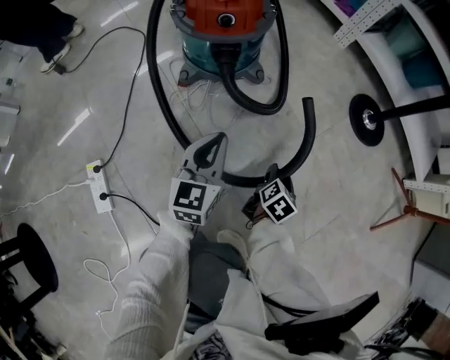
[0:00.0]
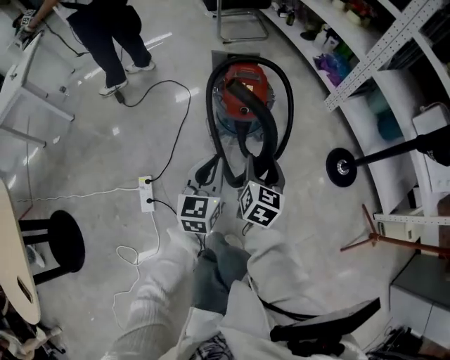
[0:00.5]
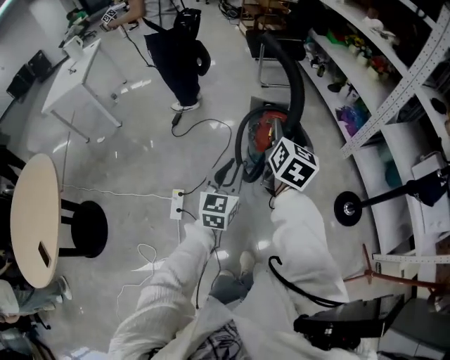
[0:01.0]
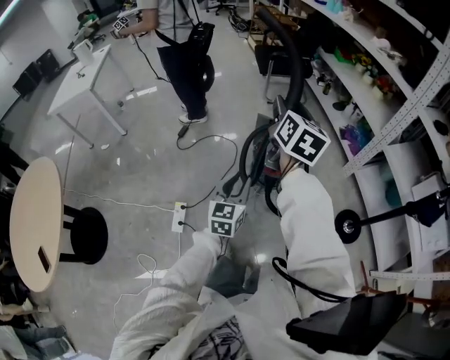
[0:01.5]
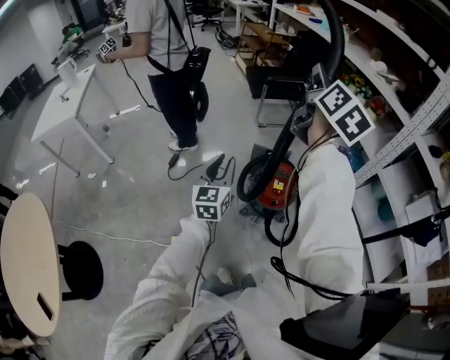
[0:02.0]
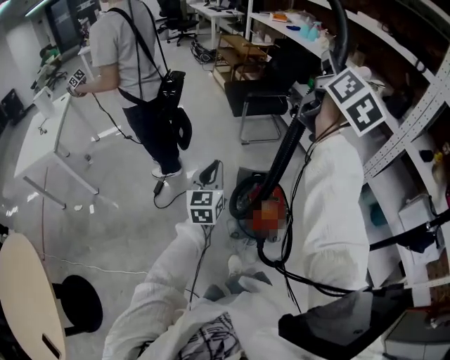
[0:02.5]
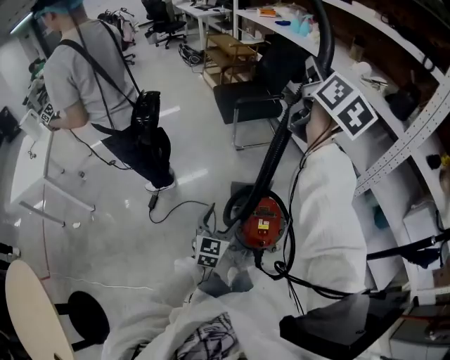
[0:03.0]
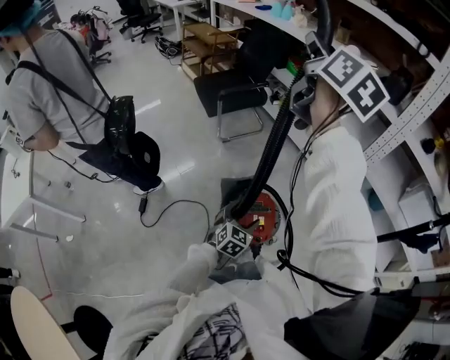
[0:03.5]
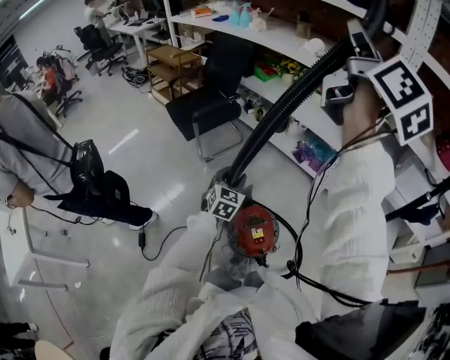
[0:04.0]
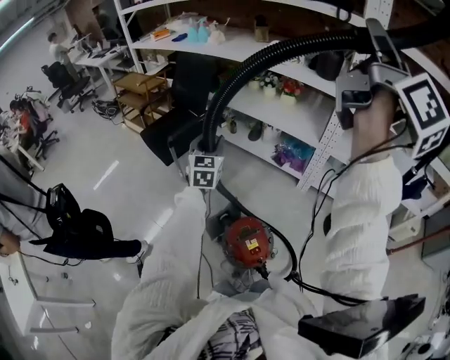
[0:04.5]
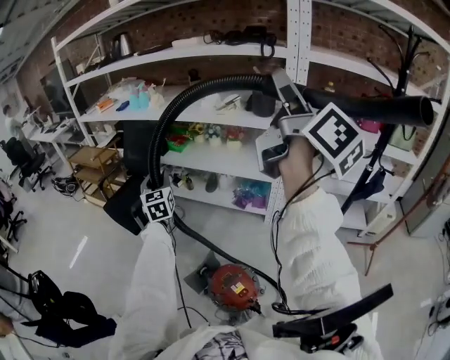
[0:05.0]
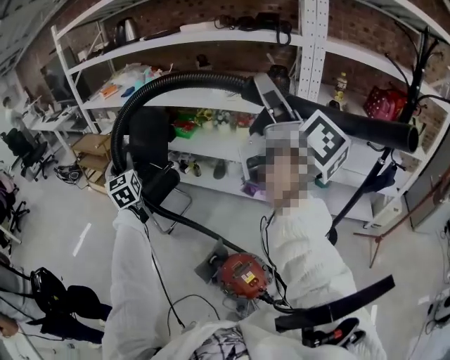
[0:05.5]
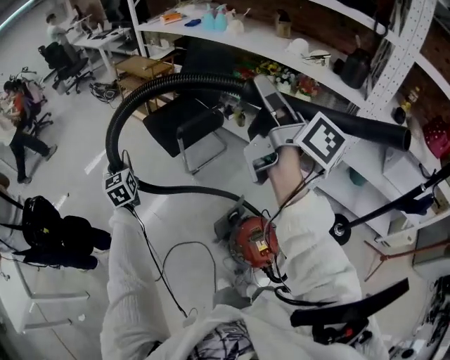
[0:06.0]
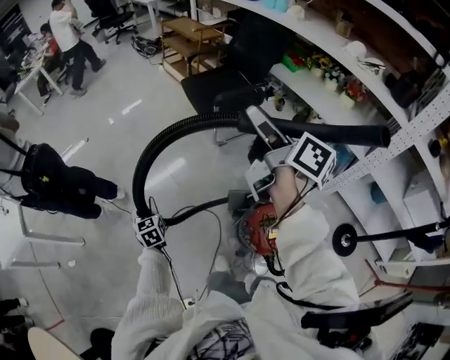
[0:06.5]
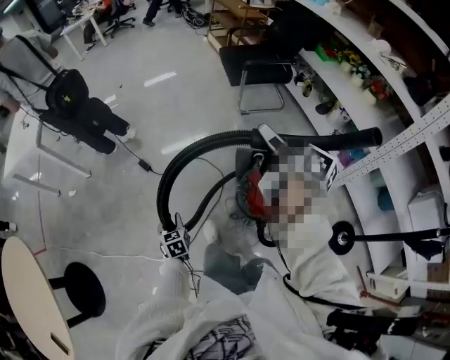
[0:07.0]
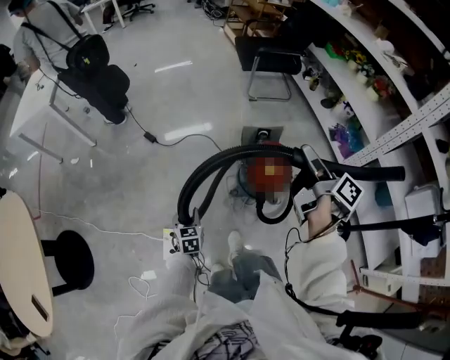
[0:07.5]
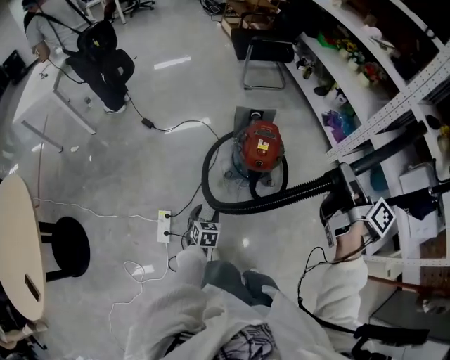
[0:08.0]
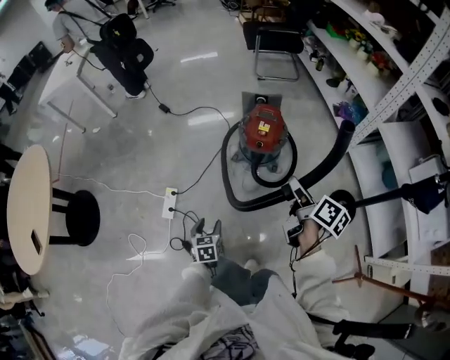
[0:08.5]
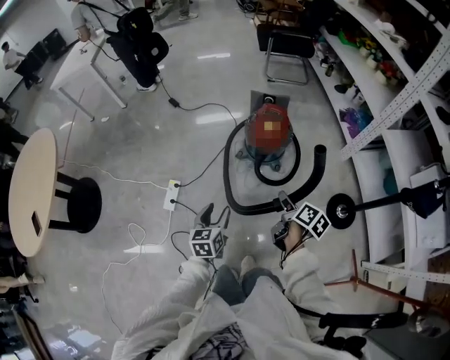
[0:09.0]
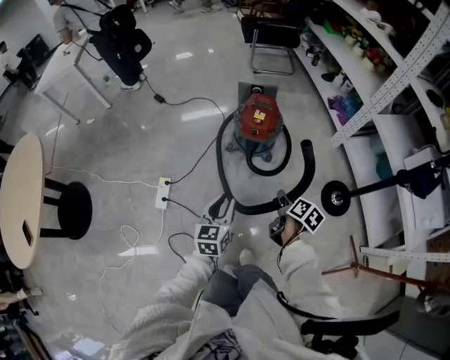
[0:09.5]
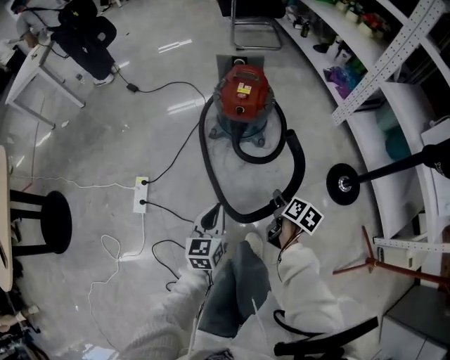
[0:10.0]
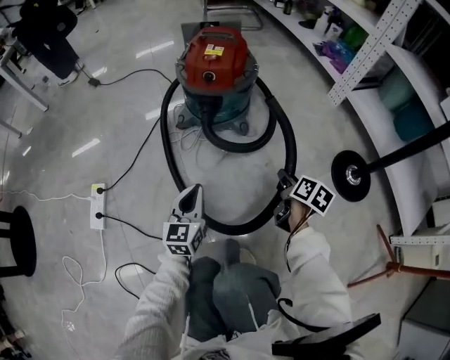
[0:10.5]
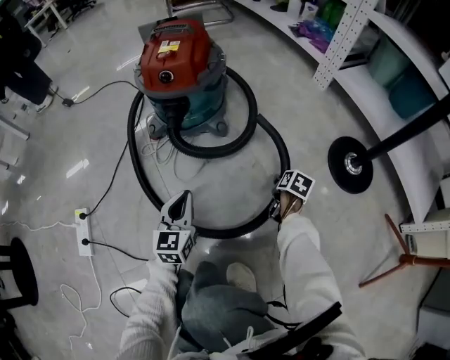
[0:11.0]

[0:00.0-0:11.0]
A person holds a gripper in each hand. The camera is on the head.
0:00.0 to 0:02.0: The left gripper shifts roughly 70 cm upward, and swivels roughly 20 degrees. Meanwhile the right gripper heads upward, covering approximately 1 m, and points its fingers about 50 degrees further upward.
0:02.0 to 0:03.5: The right gripper is displaced forward by some 30 cm, while the left gripper is displaced forward, downward and to the right by approximately 35 cm, turns by some 50 degrees, and opens its fingers.
0:03.5 to 0:05.5: The left gripper goes some 60 cm forward, upward and to the left, points its fingers approximately 30 degrees further upward, and closes up. Meanwhile the right gripper shifts approximately 15 cm to the right and upward, and turns by approximately 30 degrees.
0:05.5 to 0:07.5: The right gripper goes approximately 40 cm downward, and angles its fingers downward, by about 40 degrees, while the left gripper shifts by roughly 1 m, and tips its fingers downward by roughly 40 degrees.
0:07.5 to 0:09.0: The right gripper travels backward and downward by some 40 cm, and changes its angle by some 30 degrees. Meanwhile the left gripper heads backward and to the right, covering about 40 cm.
0:09.0 to 0:11.0: Both grippers travel together downward, approximately 60 cm. The left gripper swivels roughly 30 degrees, and closes; the right gripper turns by about 40 degrees.

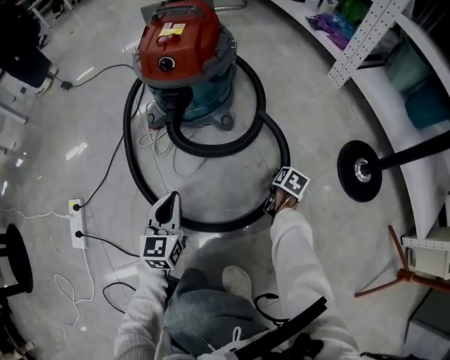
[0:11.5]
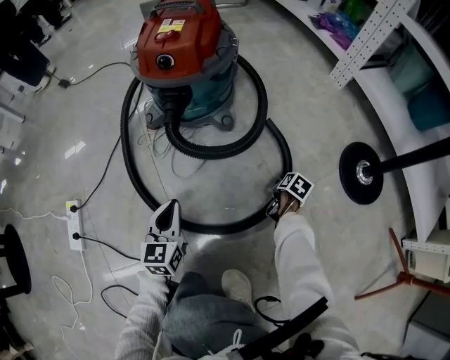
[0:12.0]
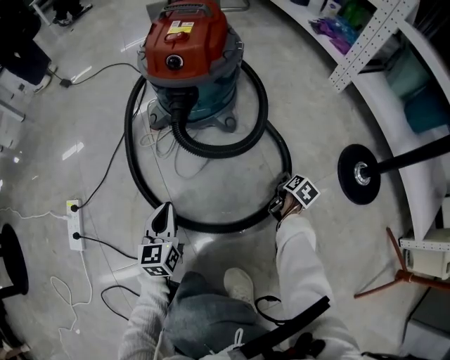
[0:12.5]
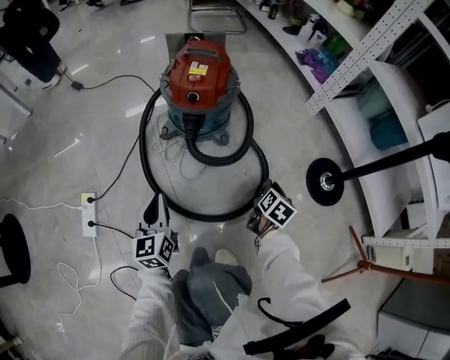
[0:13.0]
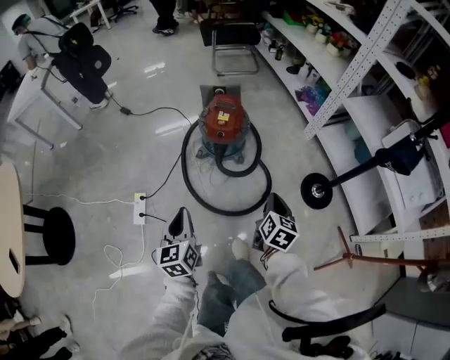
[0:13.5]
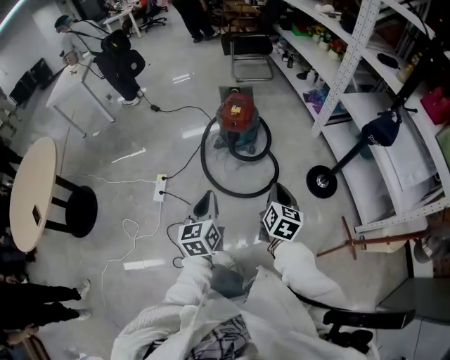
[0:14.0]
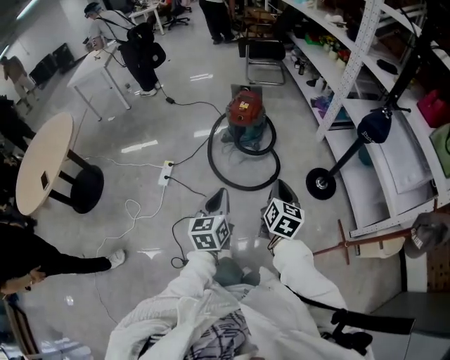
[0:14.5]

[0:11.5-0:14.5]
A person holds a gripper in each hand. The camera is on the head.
0:11.5 to 0:13.0: Both grippers move upward, approximately 25 cm. The right gripper closes up.
0:13.0 to 0:14.5: Both grippers are carried backward, about 40 cm. The two grippers go approximately 60 cm upward. The right gripper changes its angle by some 30 degrees, and closes its fingers.

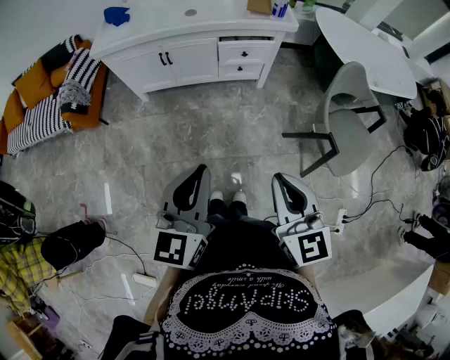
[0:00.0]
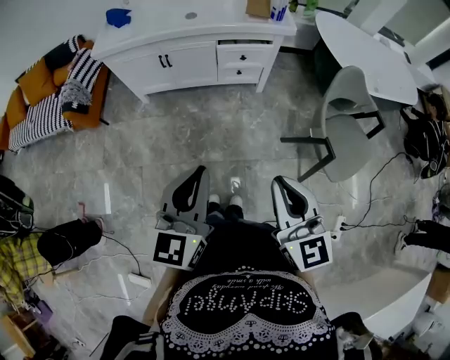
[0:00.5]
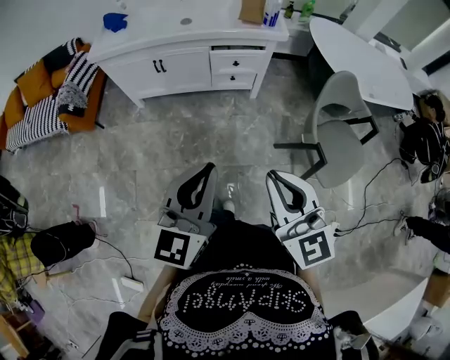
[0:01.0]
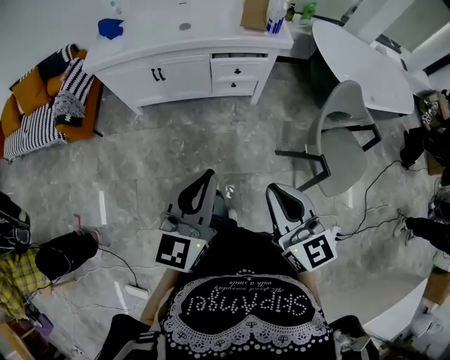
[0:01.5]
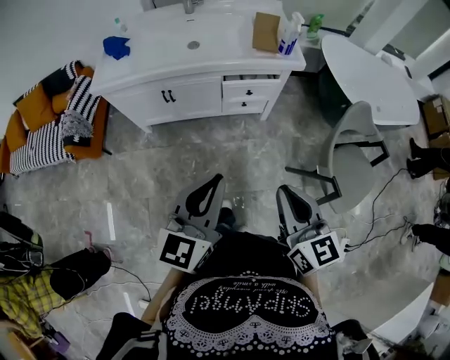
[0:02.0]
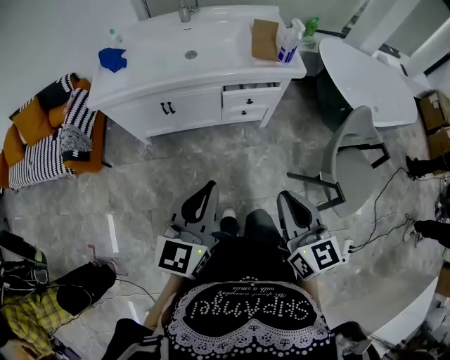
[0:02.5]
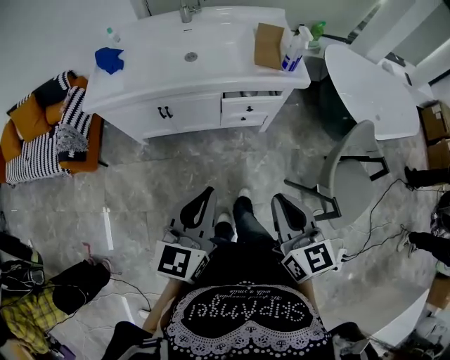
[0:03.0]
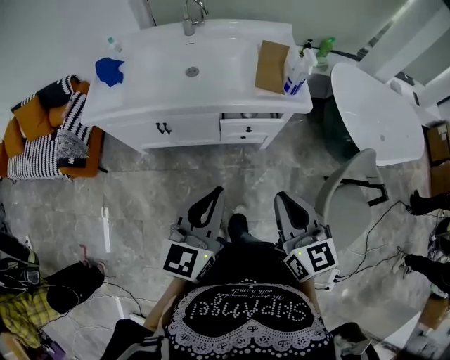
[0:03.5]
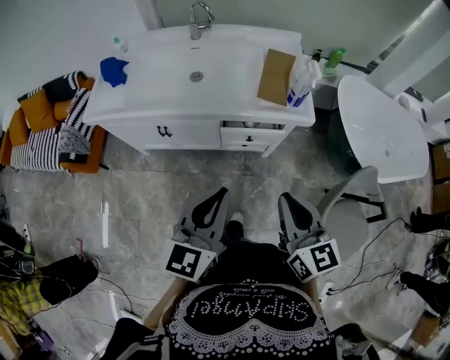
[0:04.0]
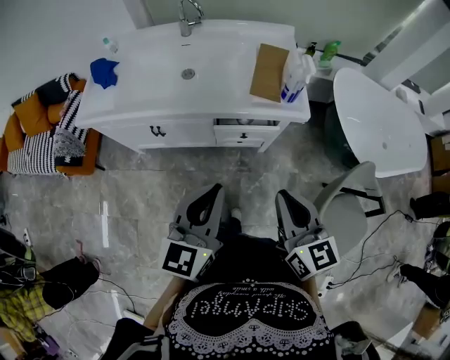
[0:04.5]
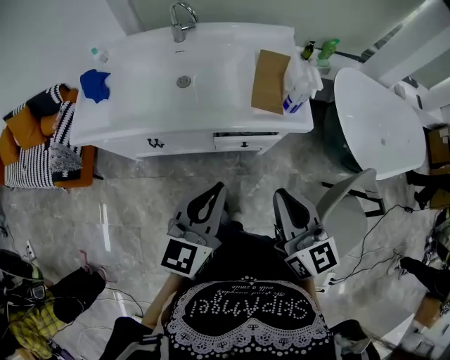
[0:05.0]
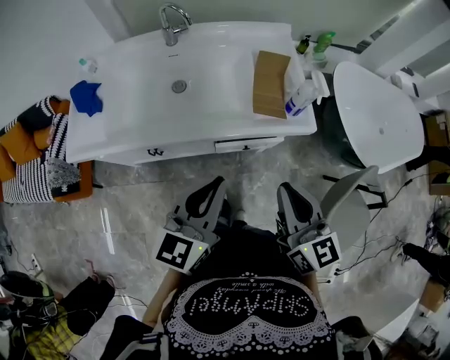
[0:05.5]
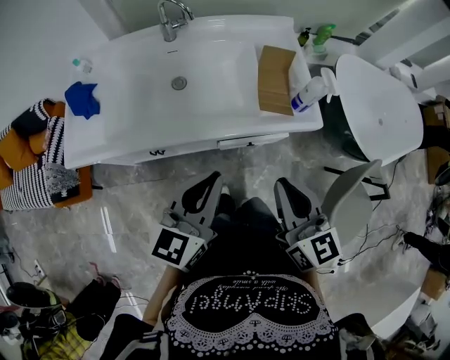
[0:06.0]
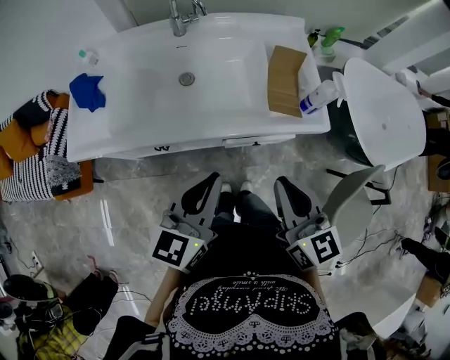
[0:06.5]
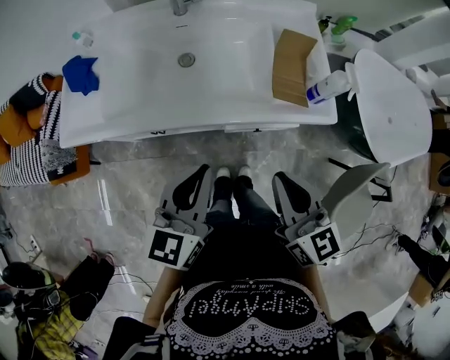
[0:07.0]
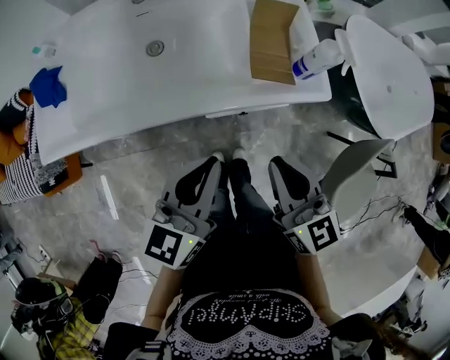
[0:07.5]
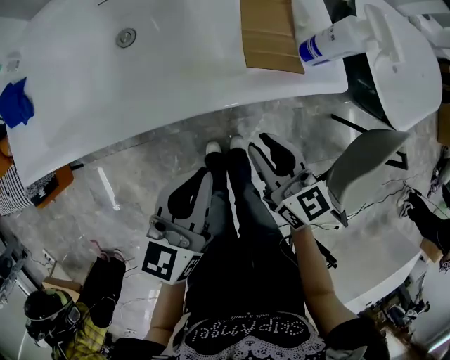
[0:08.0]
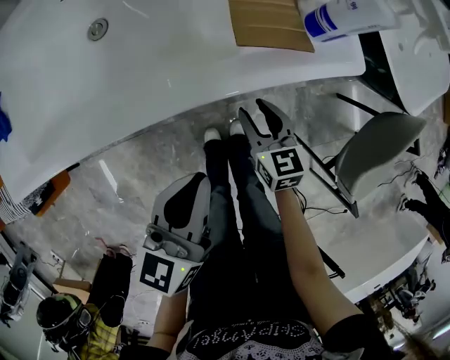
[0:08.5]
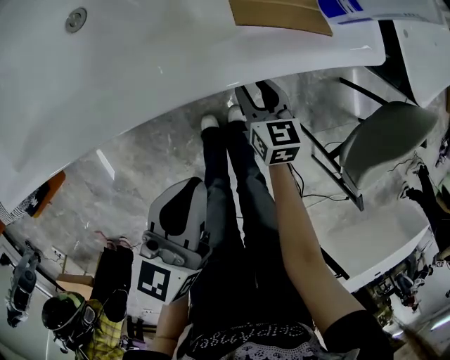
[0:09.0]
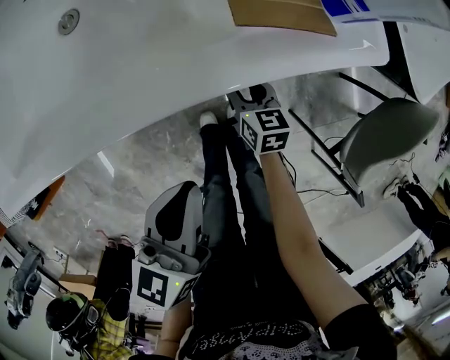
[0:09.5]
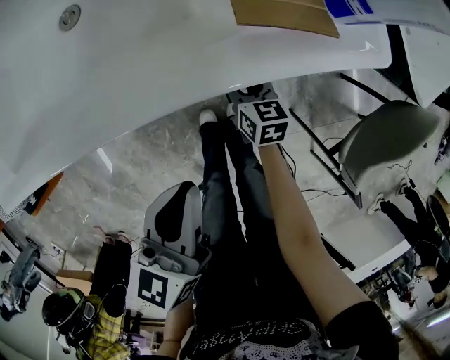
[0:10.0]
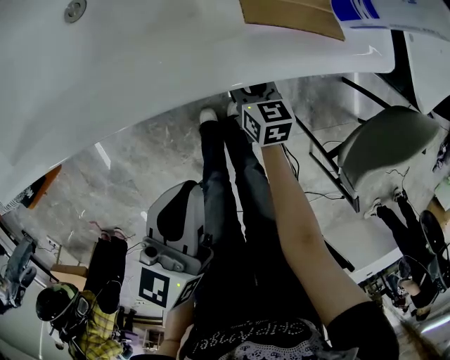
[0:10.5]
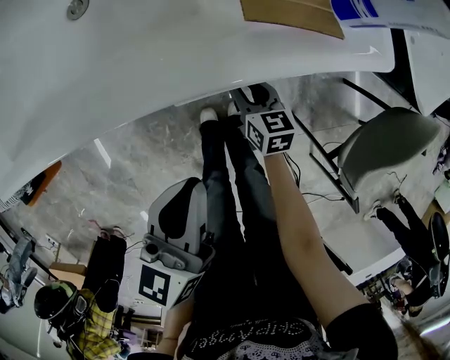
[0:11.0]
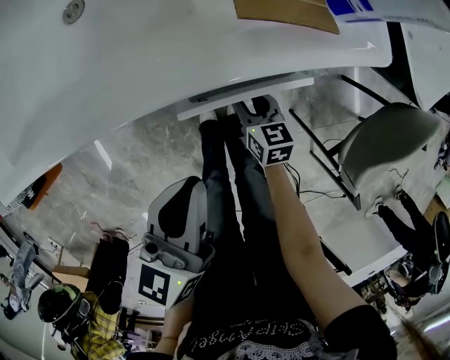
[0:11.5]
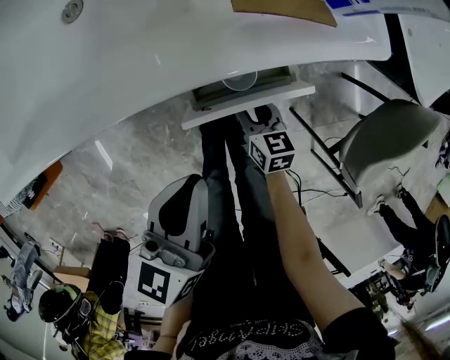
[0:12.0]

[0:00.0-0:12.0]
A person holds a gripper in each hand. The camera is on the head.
0:00.0 to 0:02.0: The two grippers go roughly 15 cm forward.
0:02.0 to 0:04.0: The grippers both shift forward by about 20 cm.
0:04.0 to 0:06.0: The two grippers go approximately 15 cm forward and to the left.
0:06.0 to 0:08.0: The right gripper moves downward, approximately 20 cm, while the left gripper moves downward, roughly 15 cm.
0:08.0 to 0:10.0: The right gripper shifts some 25 cm downward, and changes its angle by some 20 degrees; the left gripper travels downward by about 5 cm.
0:10.0 to 0:12.0: The right gripper is displaced backward by approximately 10 cm.
